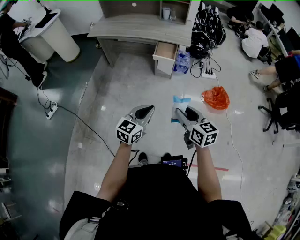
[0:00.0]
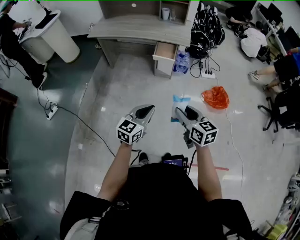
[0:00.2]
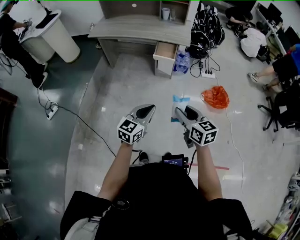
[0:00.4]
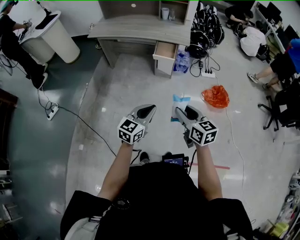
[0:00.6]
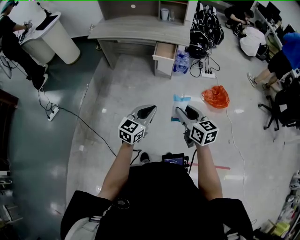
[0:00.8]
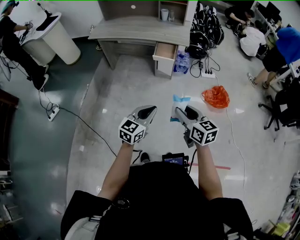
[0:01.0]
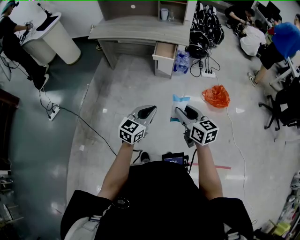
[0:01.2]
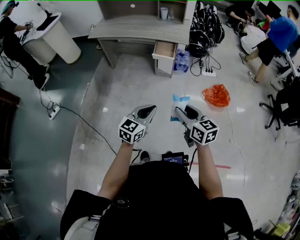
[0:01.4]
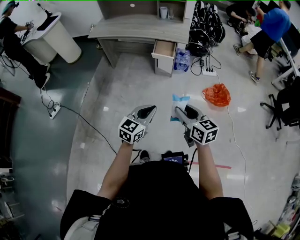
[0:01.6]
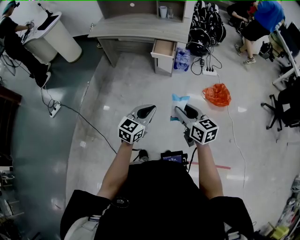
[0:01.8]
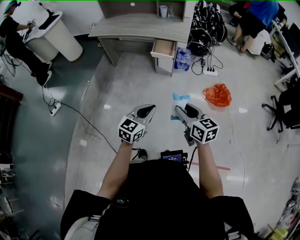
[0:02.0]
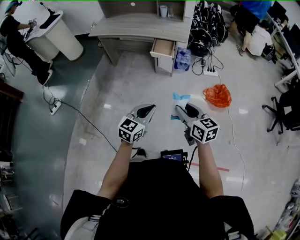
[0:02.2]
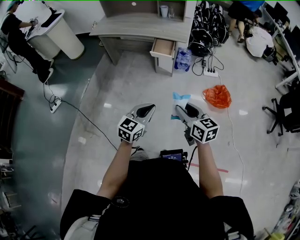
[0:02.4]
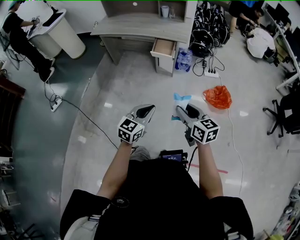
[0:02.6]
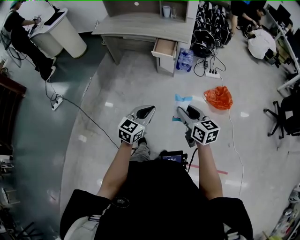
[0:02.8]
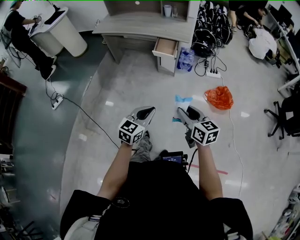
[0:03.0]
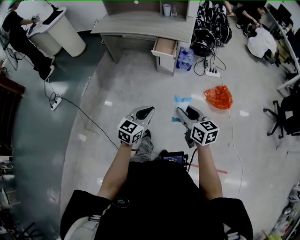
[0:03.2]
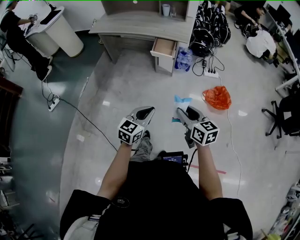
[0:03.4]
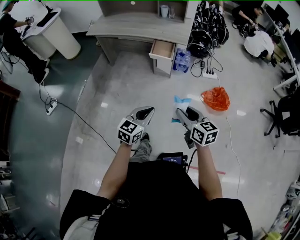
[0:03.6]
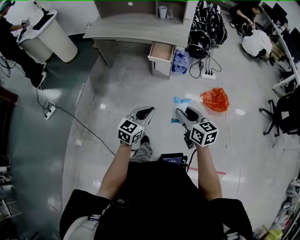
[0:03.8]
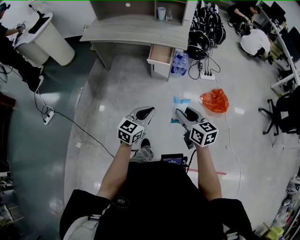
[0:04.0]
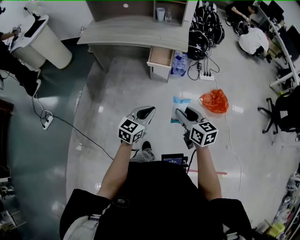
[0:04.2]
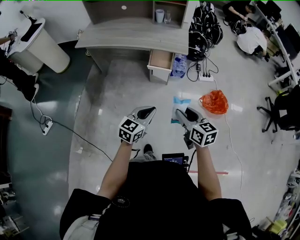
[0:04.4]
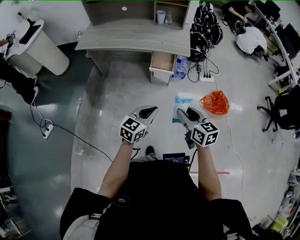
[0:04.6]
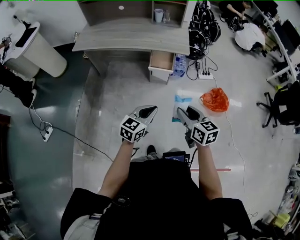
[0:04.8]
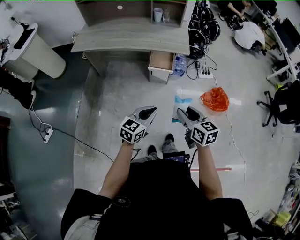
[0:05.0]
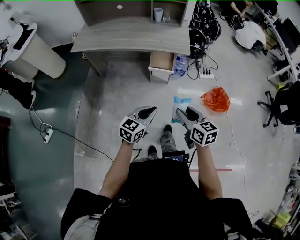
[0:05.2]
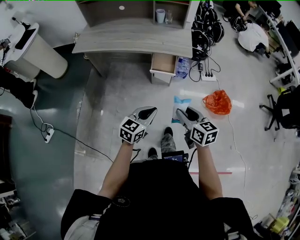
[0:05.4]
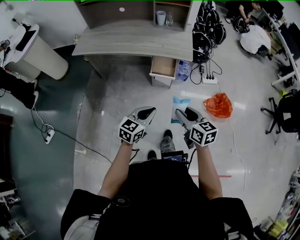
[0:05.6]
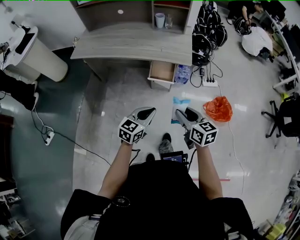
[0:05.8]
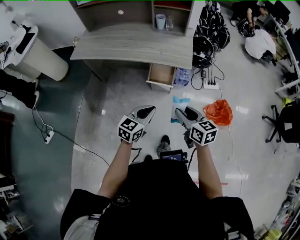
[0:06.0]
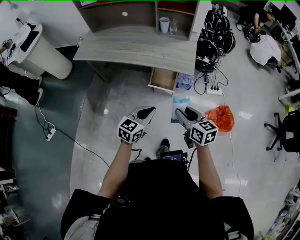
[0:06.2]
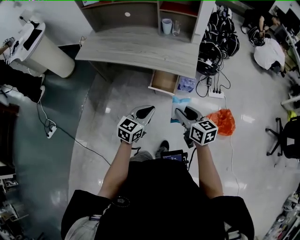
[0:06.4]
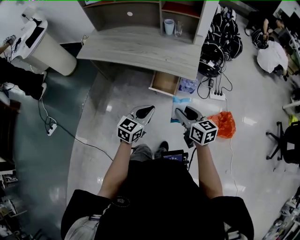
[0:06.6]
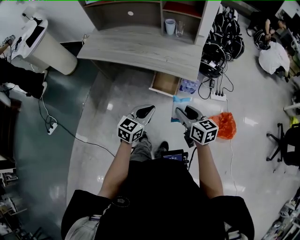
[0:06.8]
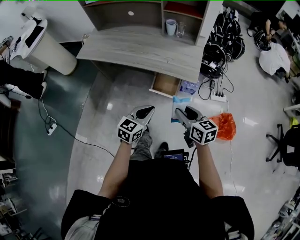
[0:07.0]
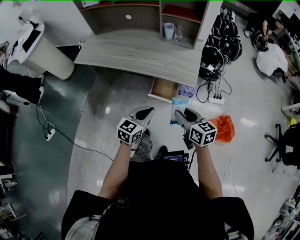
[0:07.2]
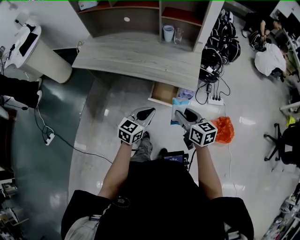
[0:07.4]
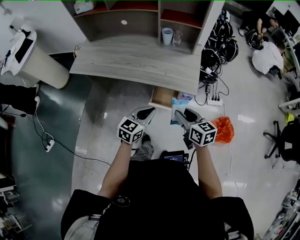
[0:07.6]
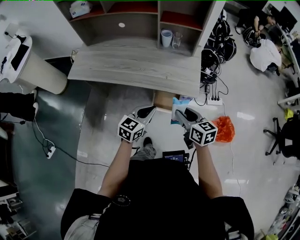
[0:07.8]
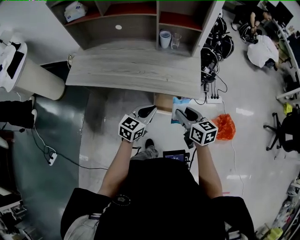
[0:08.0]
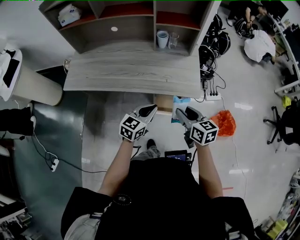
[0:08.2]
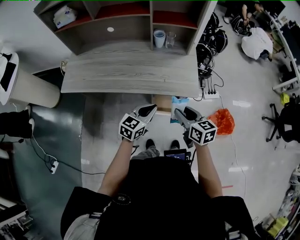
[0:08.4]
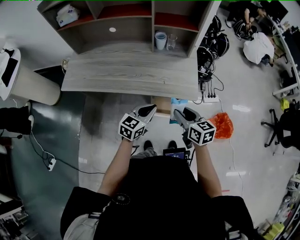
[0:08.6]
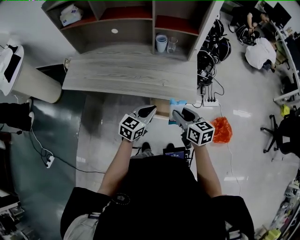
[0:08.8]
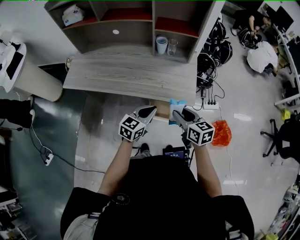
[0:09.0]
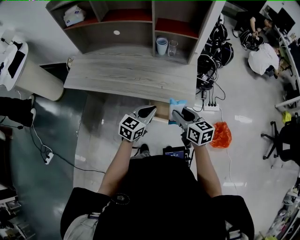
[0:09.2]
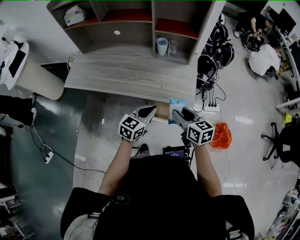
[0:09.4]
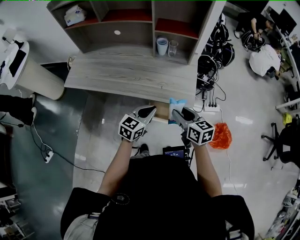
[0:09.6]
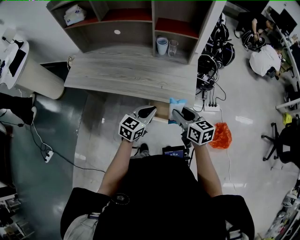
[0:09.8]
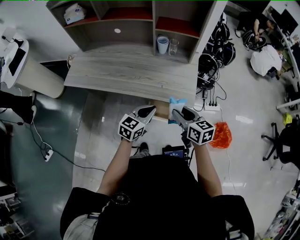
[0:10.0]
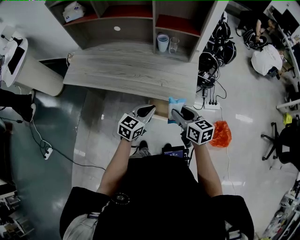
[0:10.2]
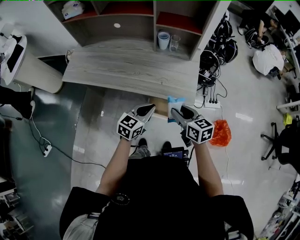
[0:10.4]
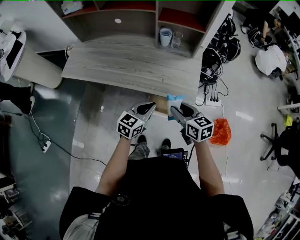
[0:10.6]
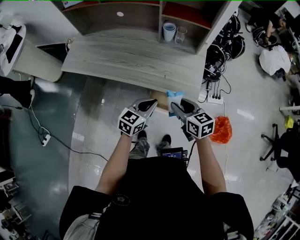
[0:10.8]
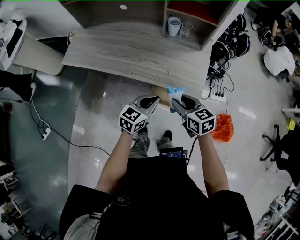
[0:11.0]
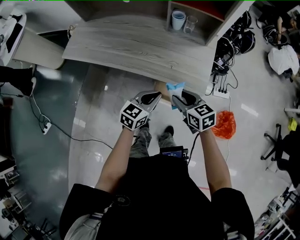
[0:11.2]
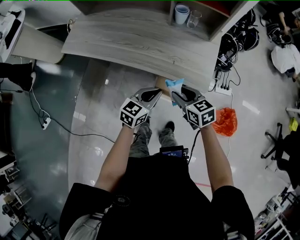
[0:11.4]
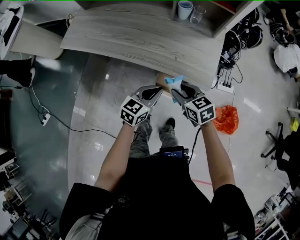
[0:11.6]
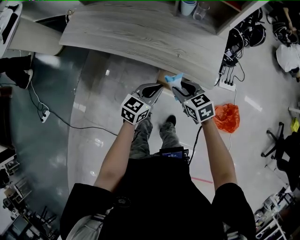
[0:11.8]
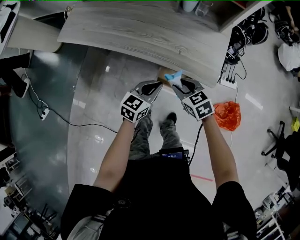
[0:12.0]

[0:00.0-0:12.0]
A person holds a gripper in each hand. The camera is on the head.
0:00.0 to 0:01.6: The grippers stay close to where they were, moving slightly.
0:01.6 to 0:03.0: The grippers both shift to the right by approximately 5 cm.
0:03.0 to 0:04.4: The grippers both shift forward and to the left by roughly 20 cm.
0:04.4 to 0:06.0: Both grippers move forward, some 15 cm.
0:06.0 to 0:07.6: Both grippers move forward, some 15 cm.
0:07.6 to 0:09.0: The two grippers go approximately 10 cm forward.
0:09.0 to 0:10.4: The grippers move only a little.
0:10.4 to 0:12.0: The right gripper goes about 15 cm downward and to the left, and swivels about 30 degrees. Meanwhile the left gripper moves downward, some 10 cm.

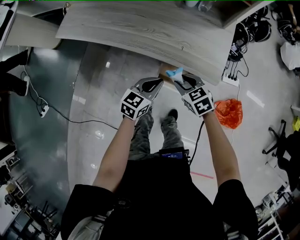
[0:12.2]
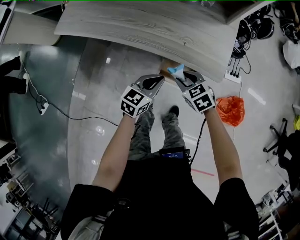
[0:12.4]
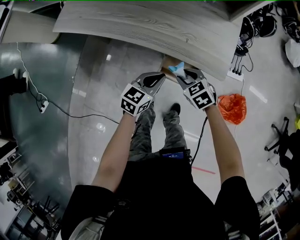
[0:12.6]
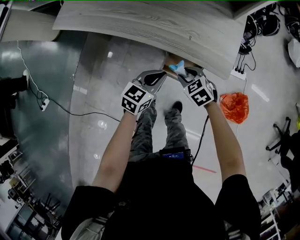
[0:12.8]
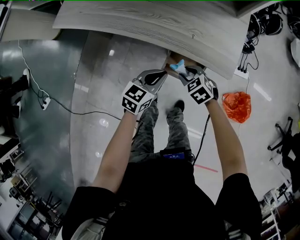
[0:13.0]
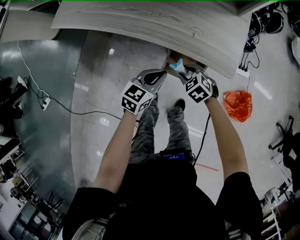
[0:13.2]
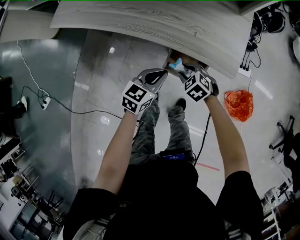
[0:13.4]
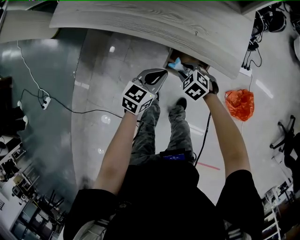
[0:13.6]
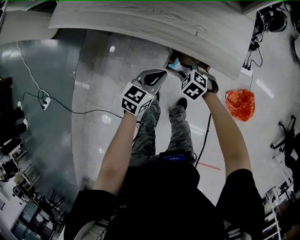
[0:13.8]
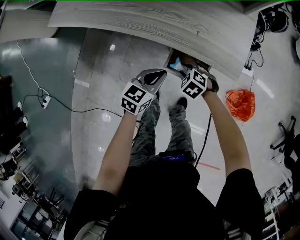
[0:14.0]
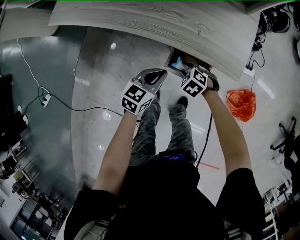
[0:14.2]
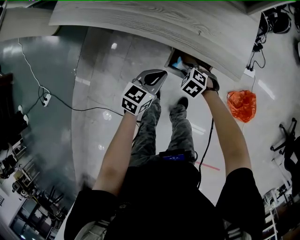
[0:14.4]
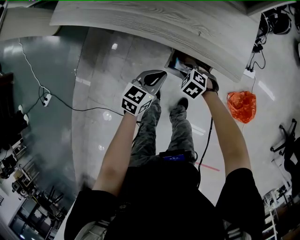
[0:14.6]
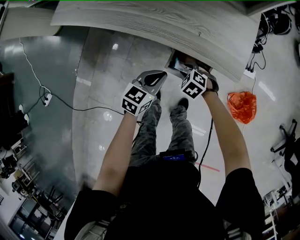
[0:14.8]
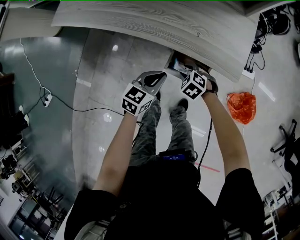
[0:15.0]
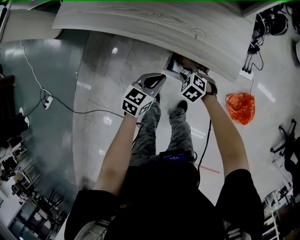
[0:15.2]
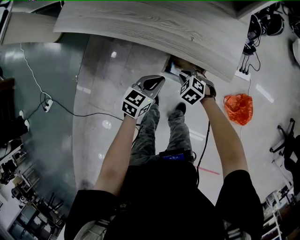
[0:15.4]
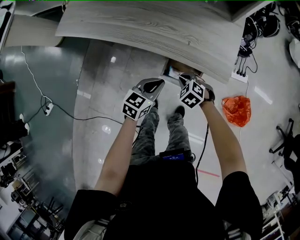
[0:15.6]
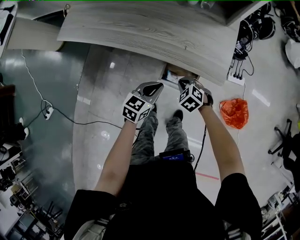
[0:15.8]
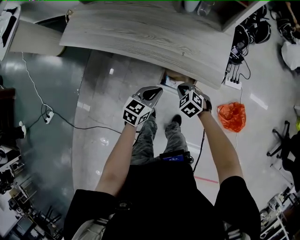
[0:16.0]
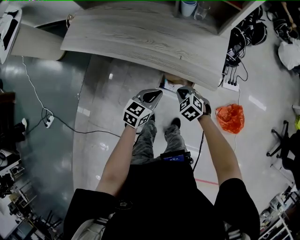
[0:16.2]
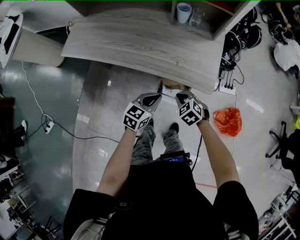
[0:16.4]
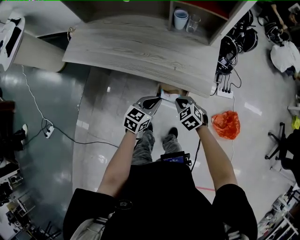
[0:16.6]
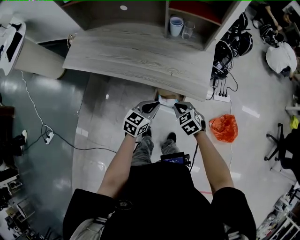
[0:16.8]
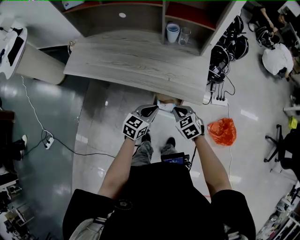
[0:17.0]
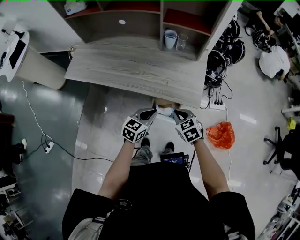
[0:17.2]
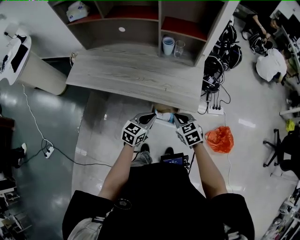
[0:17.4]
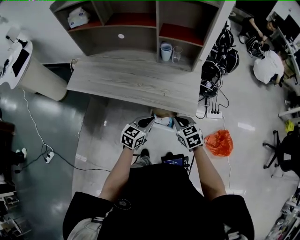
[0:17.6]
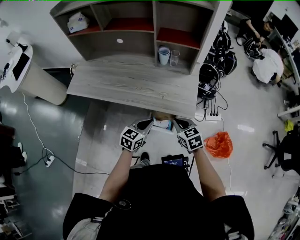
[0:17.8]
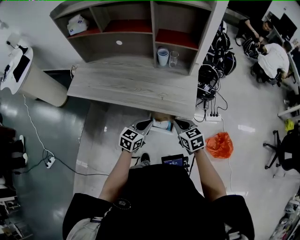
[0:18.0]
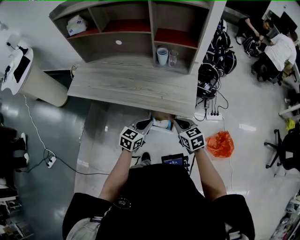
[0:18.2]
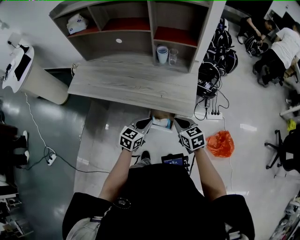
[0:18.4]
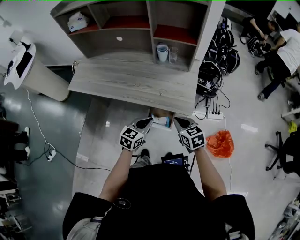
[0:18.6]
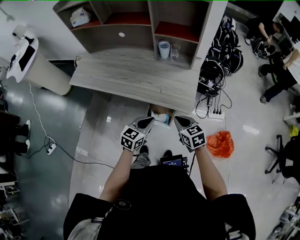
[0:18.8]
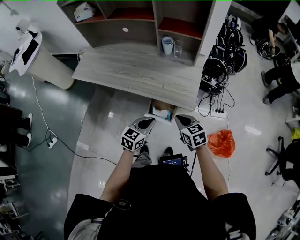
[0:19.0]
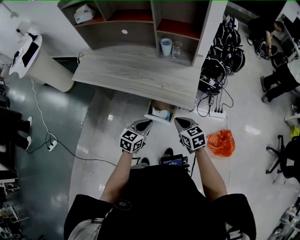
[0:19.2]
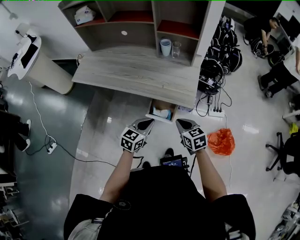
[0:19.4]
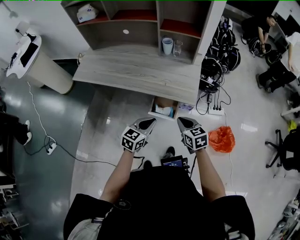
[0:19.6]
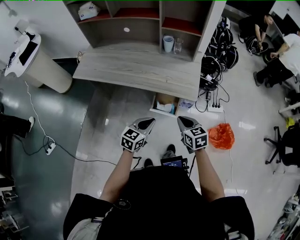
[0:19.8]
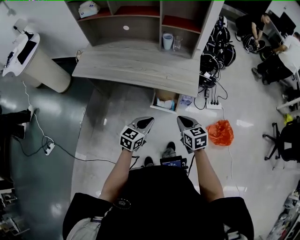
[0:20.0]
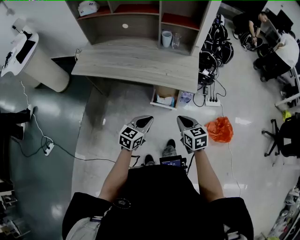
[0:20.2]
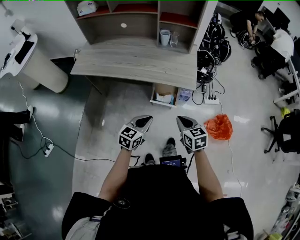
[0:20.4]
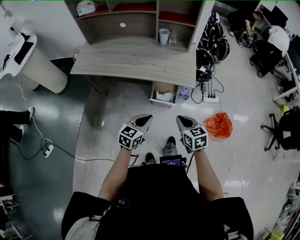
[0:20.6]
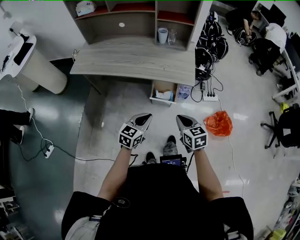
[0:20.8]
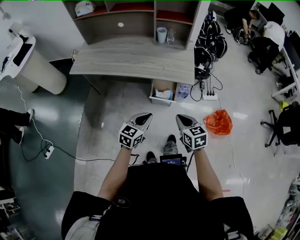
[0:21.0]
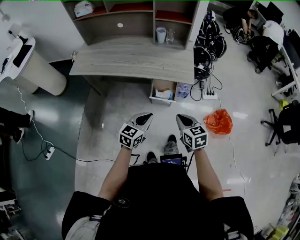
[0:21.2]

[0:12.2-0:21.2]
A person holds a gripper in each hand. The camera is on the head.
0:12.2 to 0:13.8: The left gripper shifts roughly 5 cm downward. Meanwhile the right gripper moves downward, about 15 cm, and swivels approximately 30 degrees.
0:13.8 to 0:15.2: The grippers move only a little.
0:15.2 to 0:16.6: The left gripper travels upward by roughly 10 cm. The right gripper shifts some 15 cm upward, and closes its fingers.
0:16.6 to 0:18.2: The right gripper is displaced upward and to the right by roughly 15 cm, and swivels some 30 degrees. Meanwhile the left gripper heads upward, covering some 5 cm.
0:18.2 to 0:19.8: The two grippers go roughly 10 cm backward.
0:19.8 to 0:21.2: Both grippers move backward, about 10 cm.

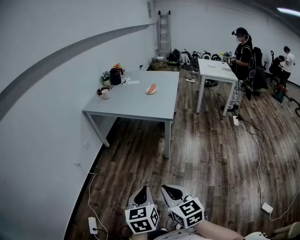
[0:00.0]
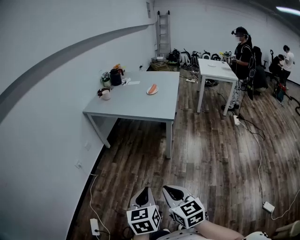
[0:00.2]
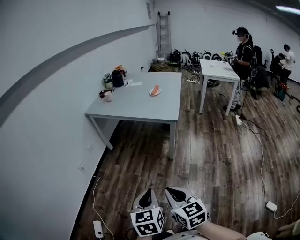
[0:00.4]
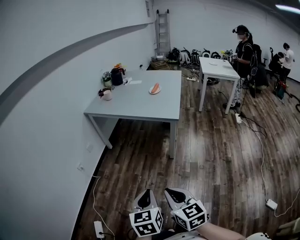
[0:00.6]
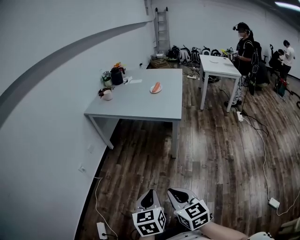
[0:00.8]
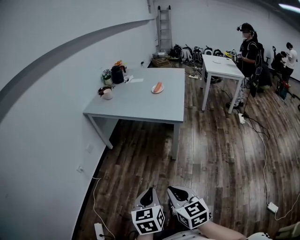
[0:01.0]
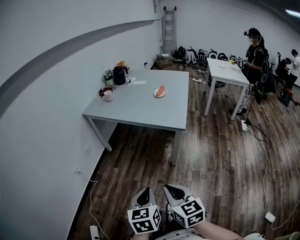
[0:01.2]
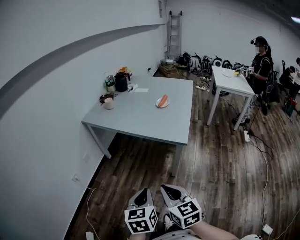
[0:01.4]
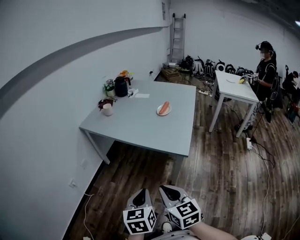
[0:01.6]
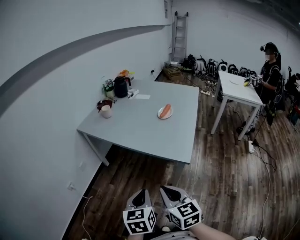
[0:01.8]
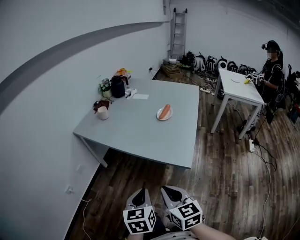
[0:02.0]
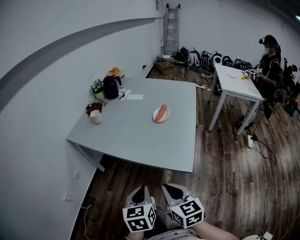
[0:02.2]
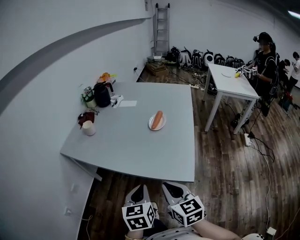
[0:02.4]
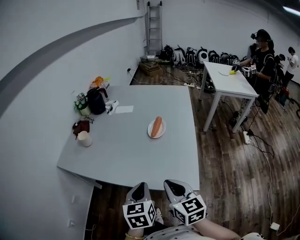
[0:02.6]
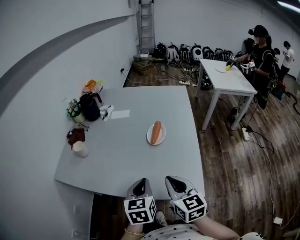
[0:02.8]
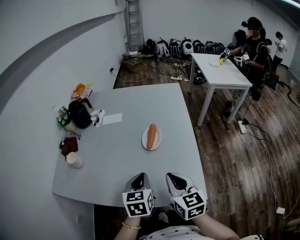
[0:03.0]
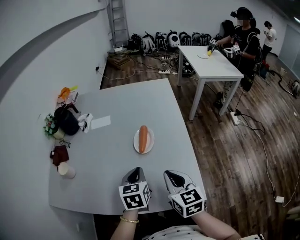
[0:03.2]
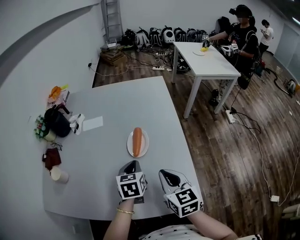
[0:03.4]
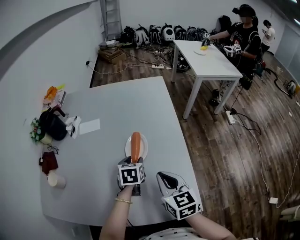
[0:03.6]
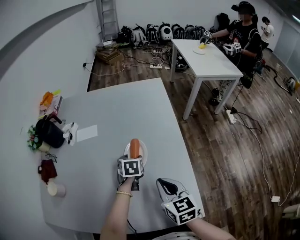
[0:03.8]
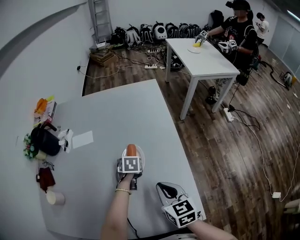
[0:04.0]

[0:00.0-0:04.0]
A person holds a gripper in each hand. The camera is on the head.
0:00.0 to 0:01.4: The two grippers go roughly 25 cm forward.
0:01.4 to 0:02.6: The two grippers travel together, forward, roughly 40 cm.
0:02.6 to 0:04.0: The right gripper travels forward by some 25 cm, and turns by approximately 20 degrees. Meanwhile the left gripper is displaced forward and downward by approximately 50 cm, angles its fingers downward, by about 30 degrees, and opens its fingers.
